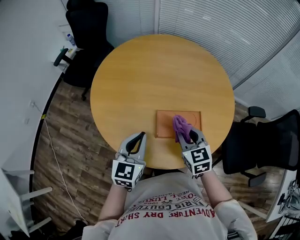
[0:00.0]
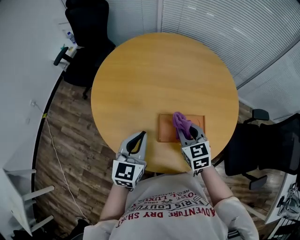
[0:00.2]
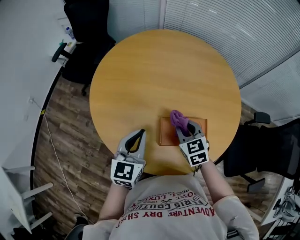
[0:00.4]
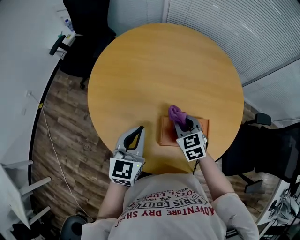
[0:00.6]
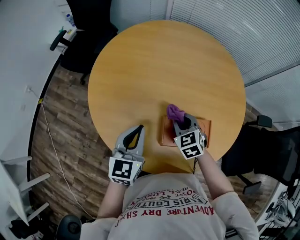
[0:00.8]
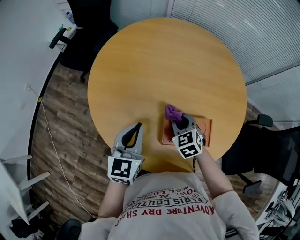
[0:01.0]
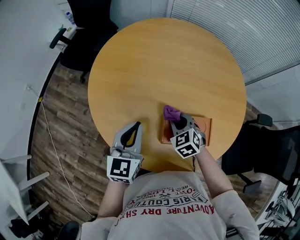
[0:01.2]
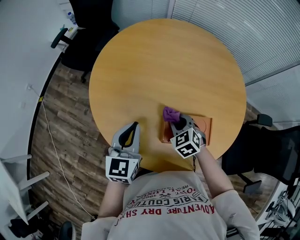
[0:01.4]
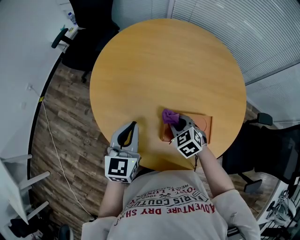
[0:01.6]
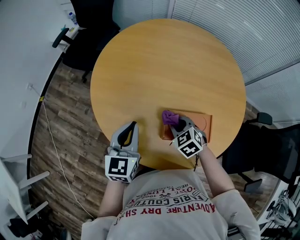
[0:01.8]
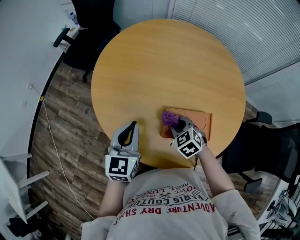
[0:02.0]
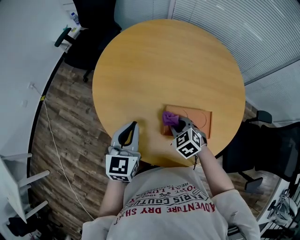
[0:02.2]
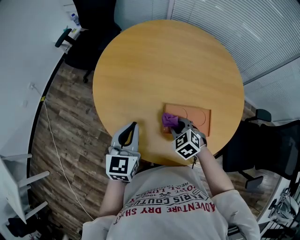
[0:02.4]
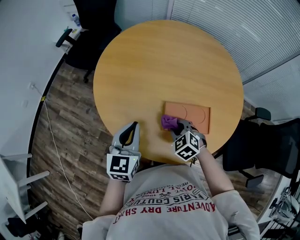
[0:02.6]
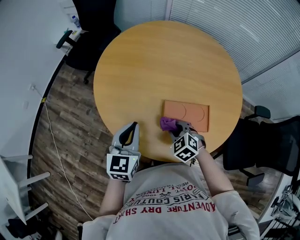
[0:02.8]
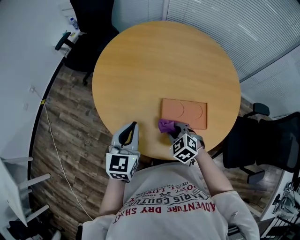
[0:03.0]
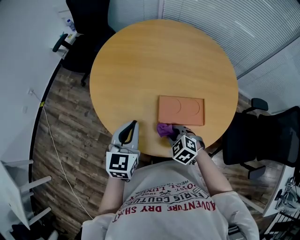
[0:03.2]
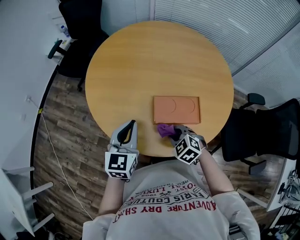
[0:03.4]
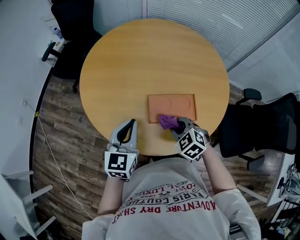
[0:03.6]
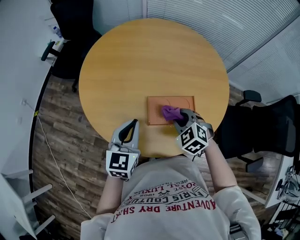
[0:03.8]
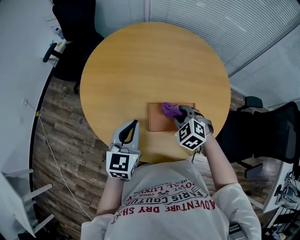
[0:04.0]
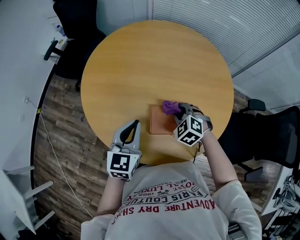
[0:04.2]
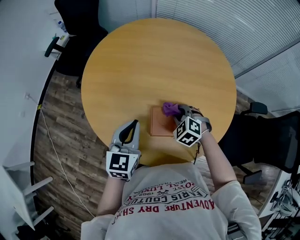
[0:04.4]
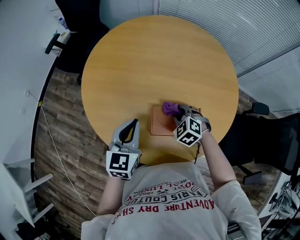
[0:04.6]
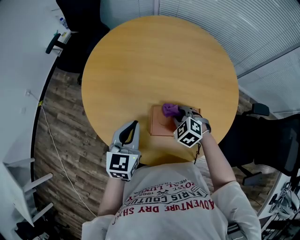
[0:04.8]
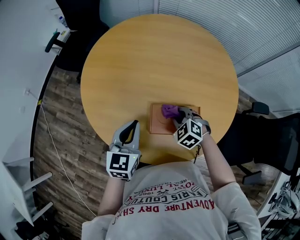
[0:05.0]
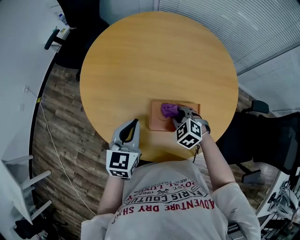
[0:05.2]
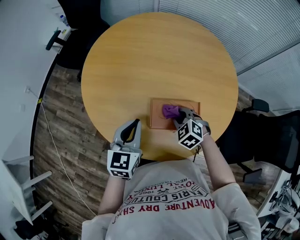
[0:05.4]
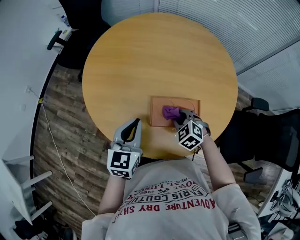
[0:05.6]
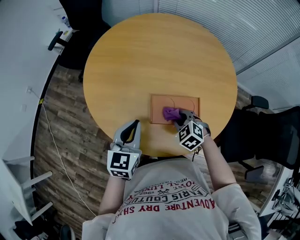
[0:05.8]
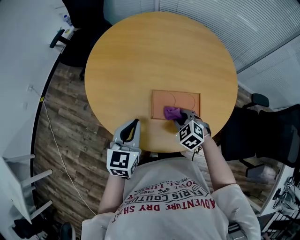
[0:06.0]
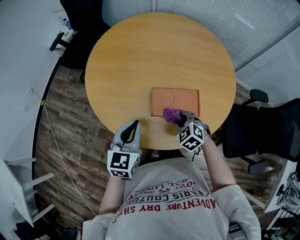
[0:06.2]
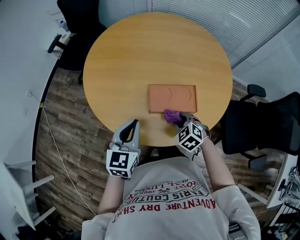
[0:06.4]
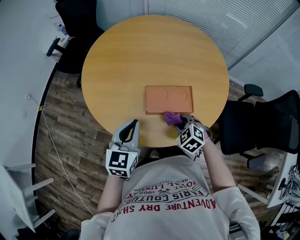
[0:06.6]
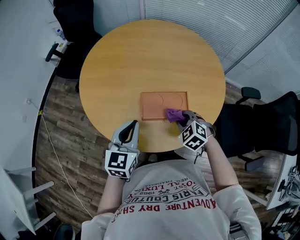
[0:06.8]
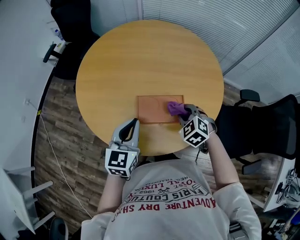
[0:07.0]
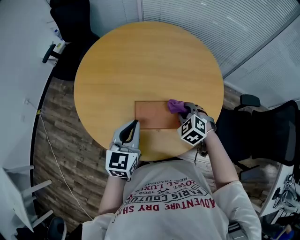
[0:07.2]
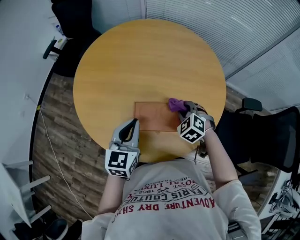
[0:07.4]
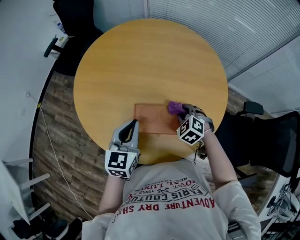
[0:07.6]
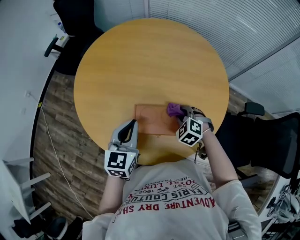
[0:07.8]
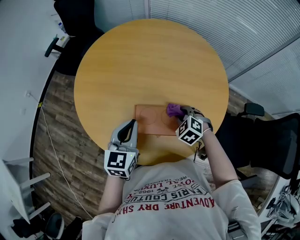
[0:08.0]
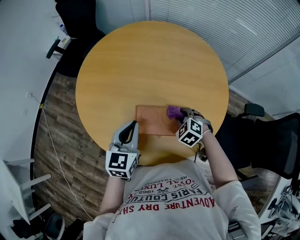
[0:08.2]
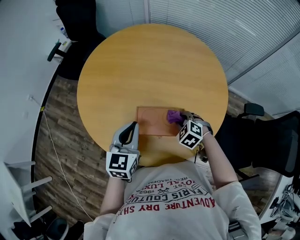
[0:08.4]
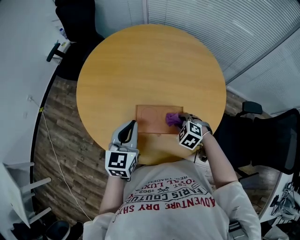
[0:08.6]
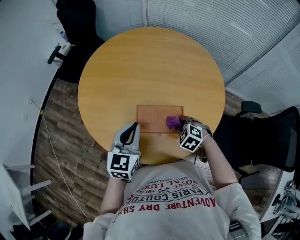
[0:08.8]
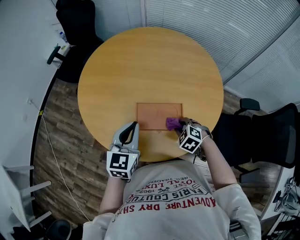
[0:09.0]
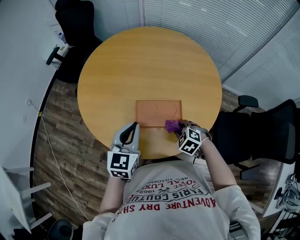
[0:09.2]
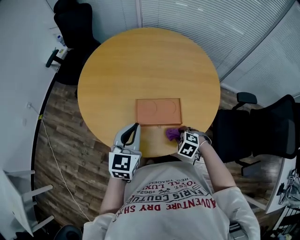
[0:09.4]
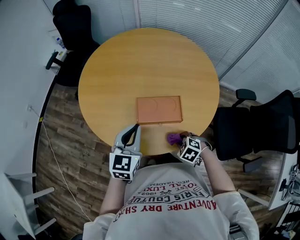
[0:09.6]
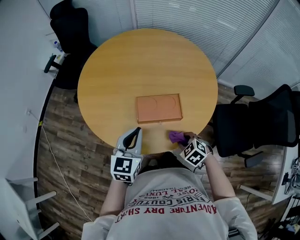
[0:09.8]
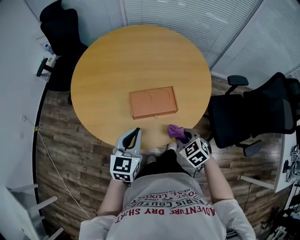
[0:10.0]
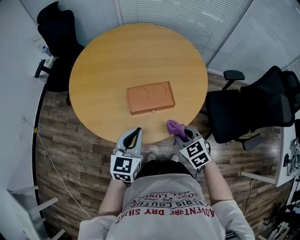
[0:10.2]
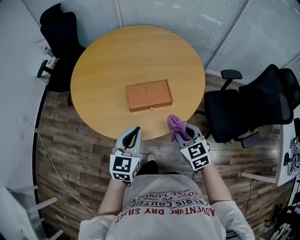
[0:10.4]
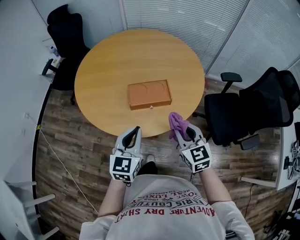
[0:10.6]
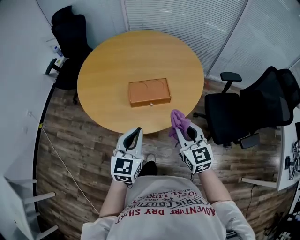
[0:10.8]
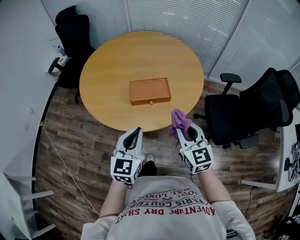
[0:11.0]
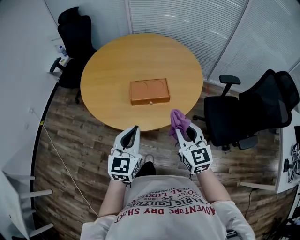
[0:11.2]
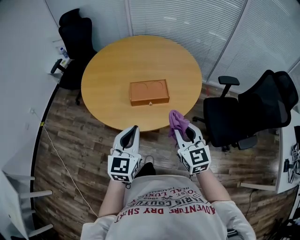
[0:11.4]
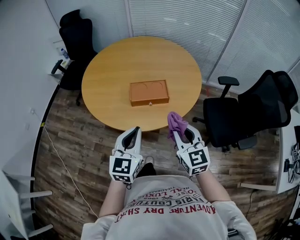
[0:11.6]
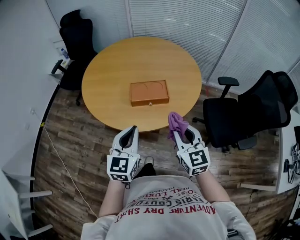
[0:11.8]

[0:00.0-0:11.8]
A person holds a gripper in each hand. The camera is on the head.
0:00.0 to 0:01.4: The left gripper is displaced forward and to the left by some 10 cm. Meanwhile the right gripper goes approximately 15 cm downward, forward and to the left, and swivels about 30 degrees.
0:01.4 to 0:03.0: The two grippers go roughly 10 cm backward.
0:03.0 to 0:04.4: The right gripper is displaced forward and to the right by roughly 15 cm. The left gripper moves to the right and forward, roughly 10 cm.
0:04.4 to 0:06.0: Both grippers travel together backward, approximately 10 cm.
0:06.0 to 0:07.4: The two grippers go some 10 cm to the right and forward.
0:07.4 to 0:08.8: The right gripper goes some 5 cm backward.
0:08.8 to 0:10.4: The right gripper shifts roughly 25 cm backward and upward, and turns by some 50 degrees, while the left gripper shifts about 15 cm backward.
0:10.4 to 0:11.8: The grippers both shift backward and upward by about 15 cm. The right gripper rotates approximately 20 degrees.

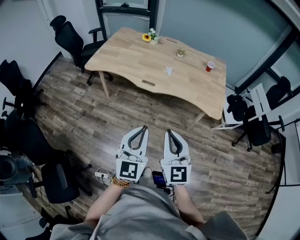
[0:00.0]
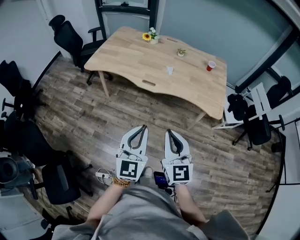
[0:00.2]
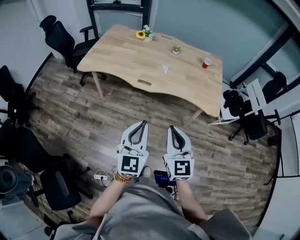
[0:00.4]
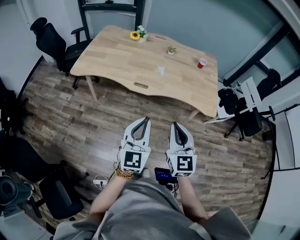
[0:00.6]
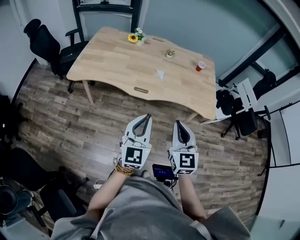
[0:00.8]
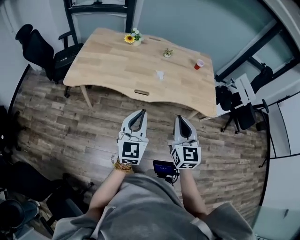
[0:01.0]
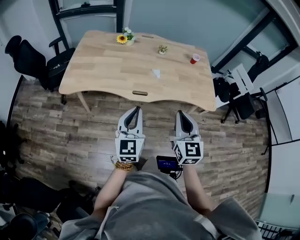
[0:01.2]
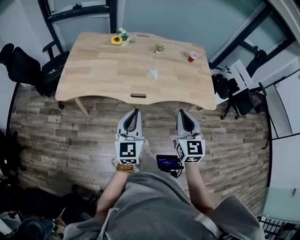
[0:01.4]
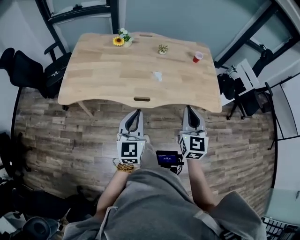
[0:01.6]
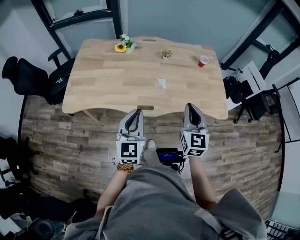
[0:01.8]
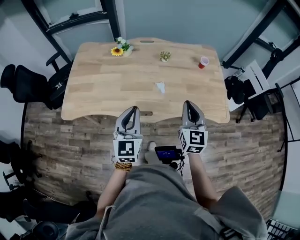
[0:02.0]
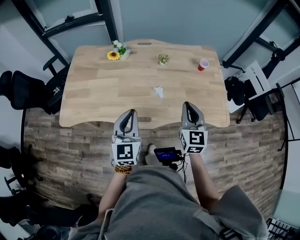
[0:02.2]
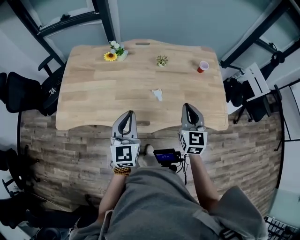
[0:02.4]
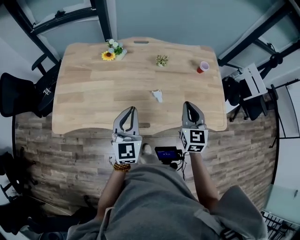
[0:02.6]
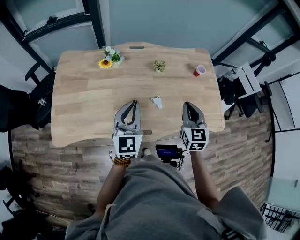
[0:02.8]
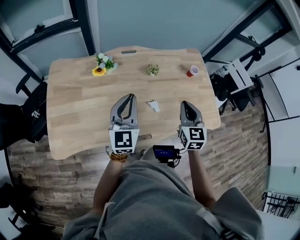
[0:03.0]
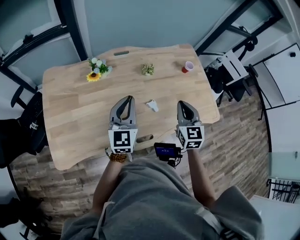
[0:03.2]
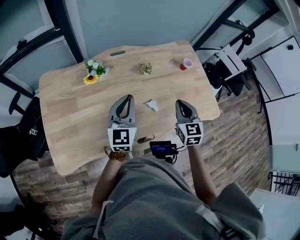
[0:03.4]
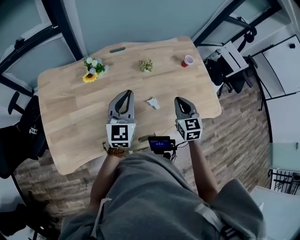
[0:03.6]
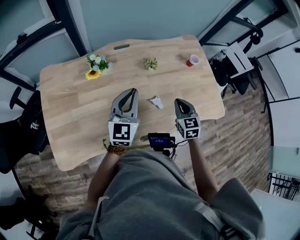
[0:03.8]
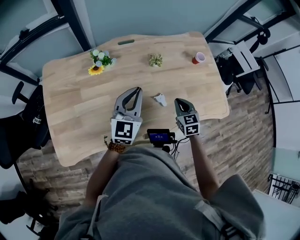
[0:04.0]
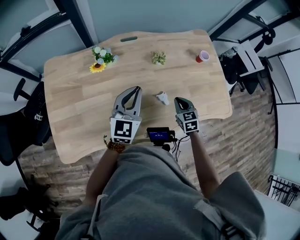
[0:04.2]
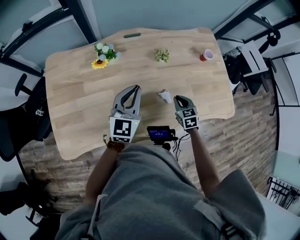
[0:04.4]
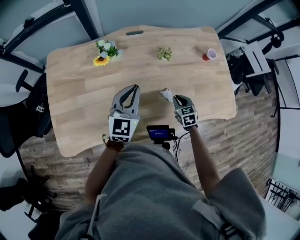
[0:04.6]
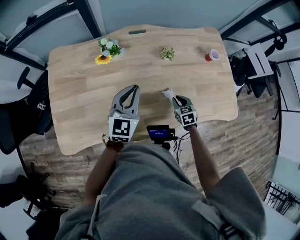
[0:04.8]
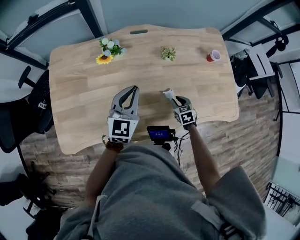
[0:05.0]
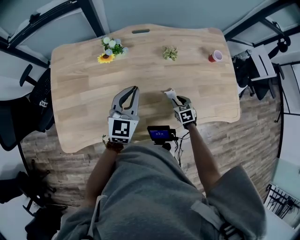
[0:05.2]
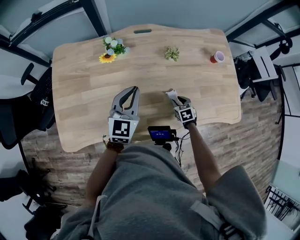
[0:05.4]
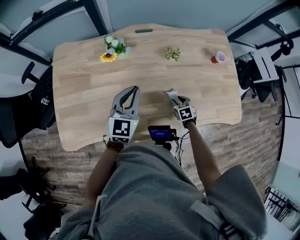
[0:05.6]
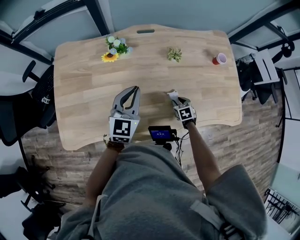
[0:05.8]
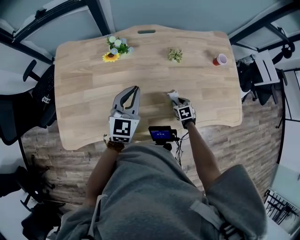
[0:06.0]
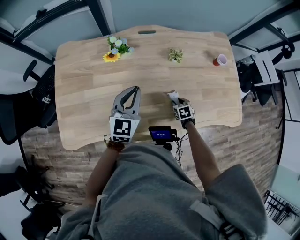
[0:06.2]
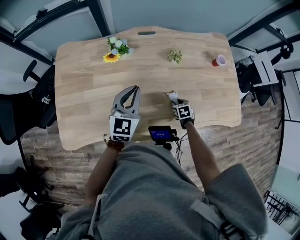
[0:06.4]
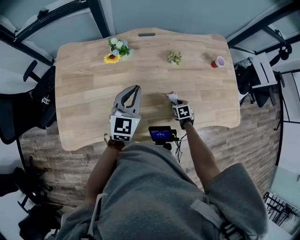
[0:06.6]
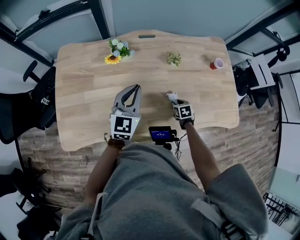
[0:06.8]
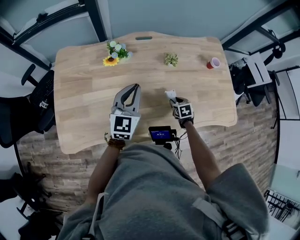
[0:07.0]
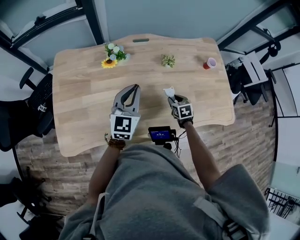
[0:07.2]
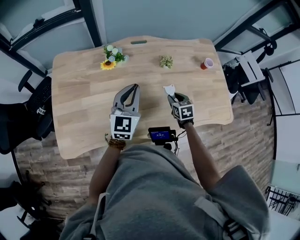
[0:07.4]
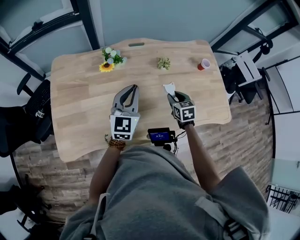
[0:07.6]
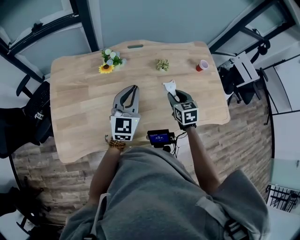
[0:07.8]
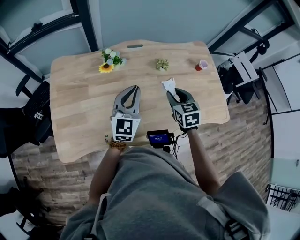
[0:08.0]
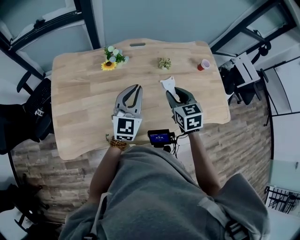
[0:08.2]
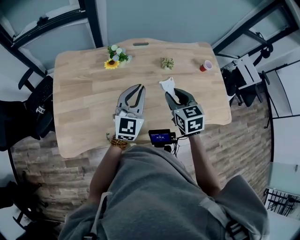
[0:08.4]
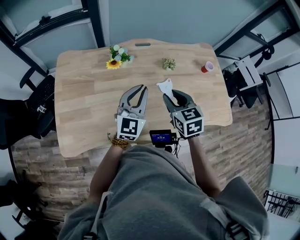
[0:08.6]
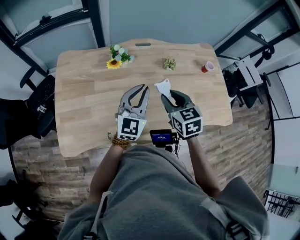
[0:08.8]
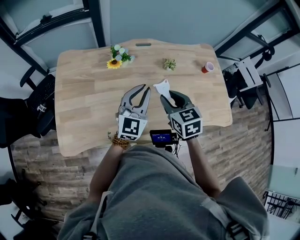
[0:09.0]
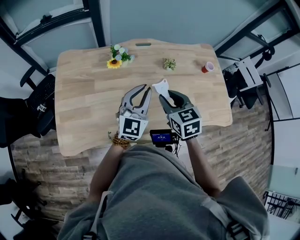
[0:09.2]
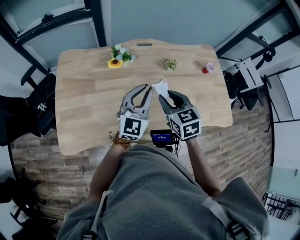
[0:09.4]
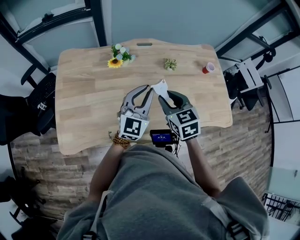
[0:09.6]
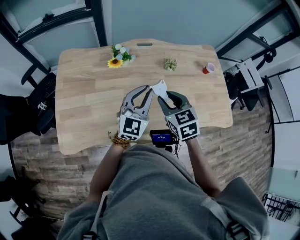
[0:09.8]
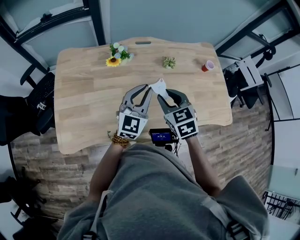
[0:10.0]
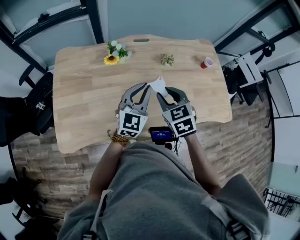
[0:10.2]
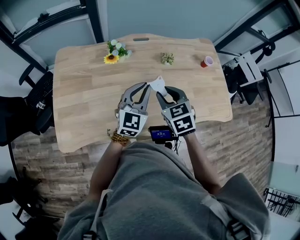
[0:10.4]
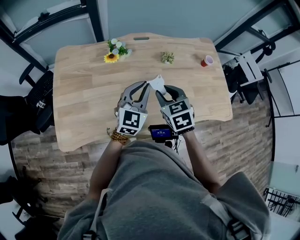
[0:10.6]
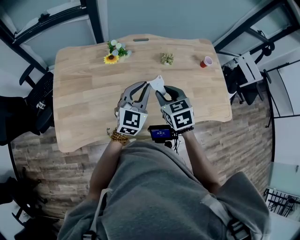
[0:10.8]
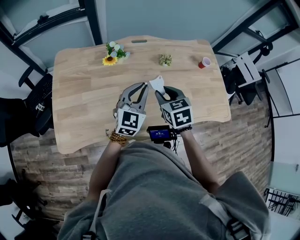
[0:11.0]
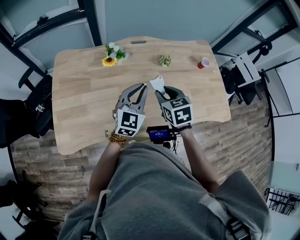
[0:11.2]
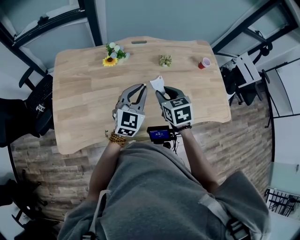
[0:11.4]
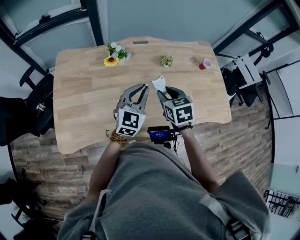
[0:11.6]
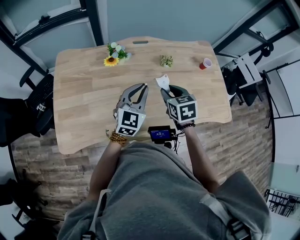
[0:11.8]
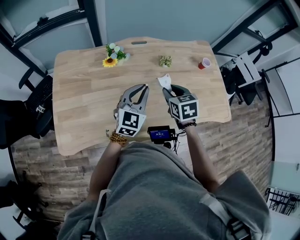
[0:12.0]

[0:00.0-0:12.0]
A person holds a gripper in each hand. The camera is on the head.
0:00.0 to 0:01.6: The right gripper travels forward by about 25 cm, and swivels about 30 degrees. The left gripper travels forward and to the left by about 30 cm.
0:01.6 to 0:03.0: The two grippers go roughly 30 cm forward.
0:03.0 to 0:04.4: The right gripper heads downward, covering about 25 cm, and rotates about 30 degrees. Meanwhile the left gripper travels downward and forward by some 10 cm.
0:04.4 to 0:06.0: The right gripper is displaced downward by approximately 15 cm, turns by some 20 degrees, and opens.
0:06.0 to 0:07.6: The right gripper is displaced upward by roughly 20 cm, and swivels about 20 degrees.
0:07.6 to 0:09.0: The right gripper shifts about 20 cm upward and to the left.
0:09.0 to 0:10.4: The grippers make only small movements.
0:10.4 to 0:12.0: The right gripper ends up about 5 cm from where it was.
